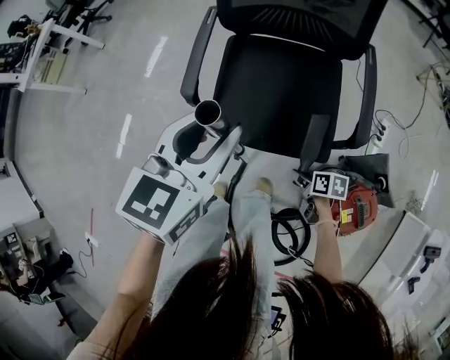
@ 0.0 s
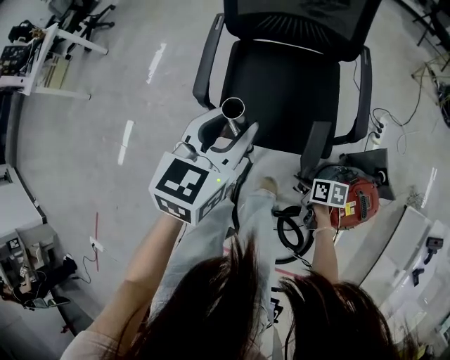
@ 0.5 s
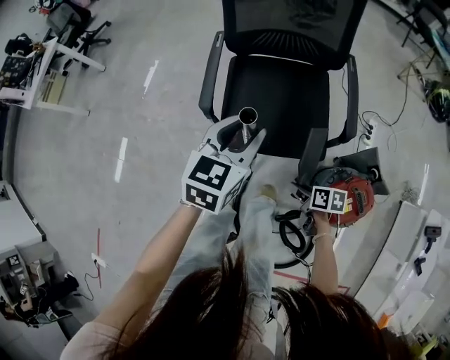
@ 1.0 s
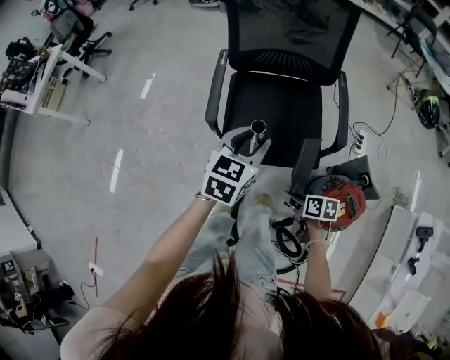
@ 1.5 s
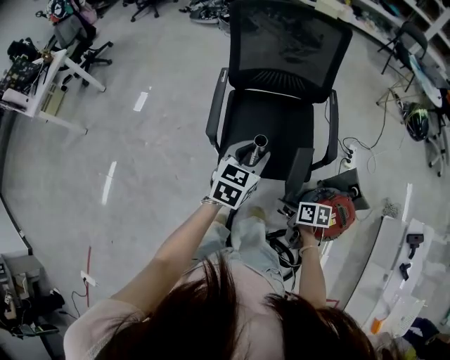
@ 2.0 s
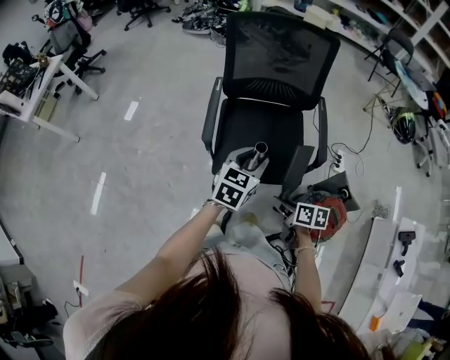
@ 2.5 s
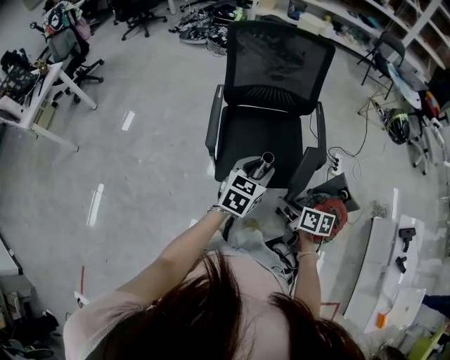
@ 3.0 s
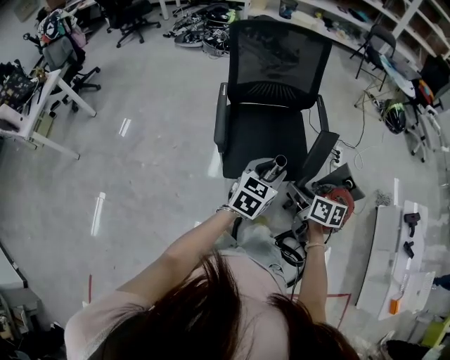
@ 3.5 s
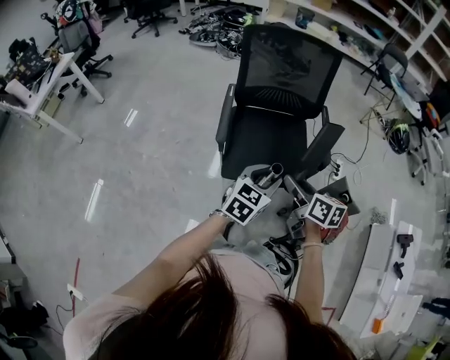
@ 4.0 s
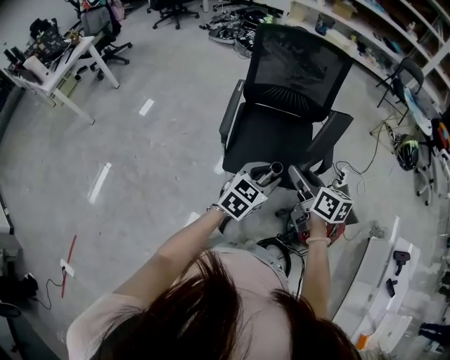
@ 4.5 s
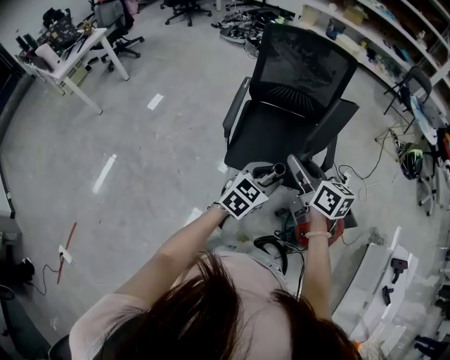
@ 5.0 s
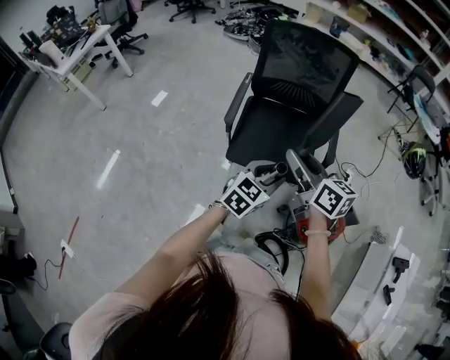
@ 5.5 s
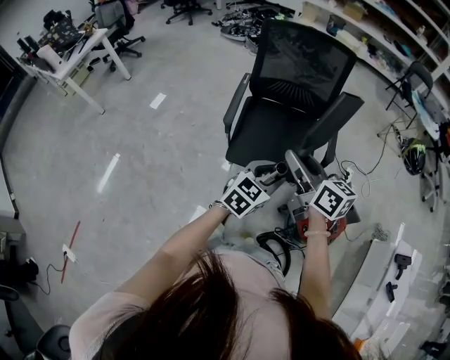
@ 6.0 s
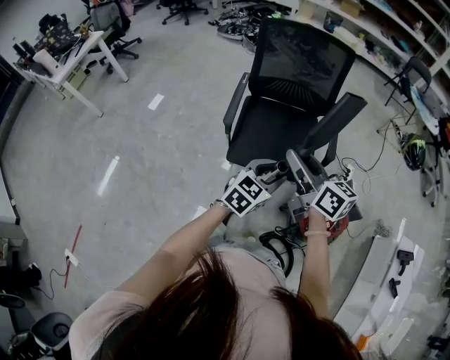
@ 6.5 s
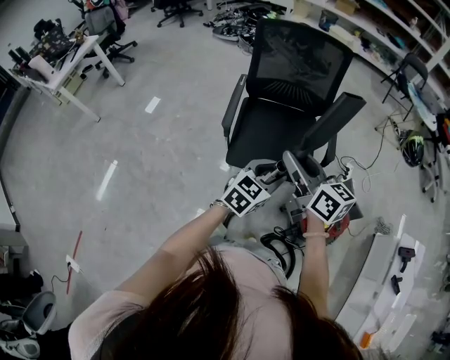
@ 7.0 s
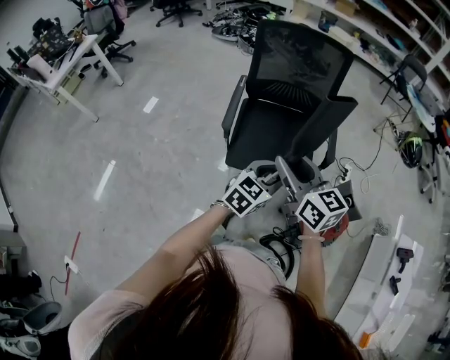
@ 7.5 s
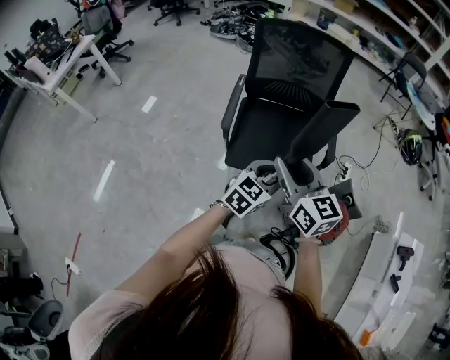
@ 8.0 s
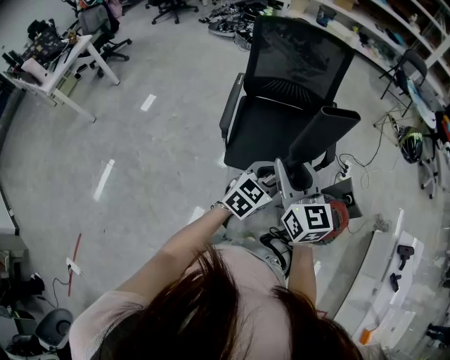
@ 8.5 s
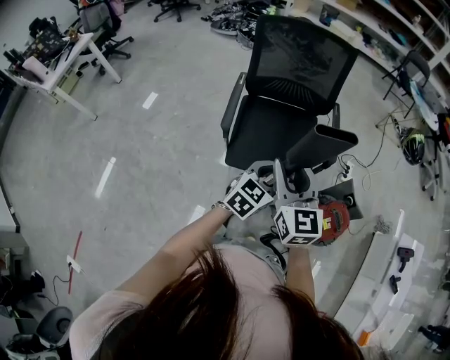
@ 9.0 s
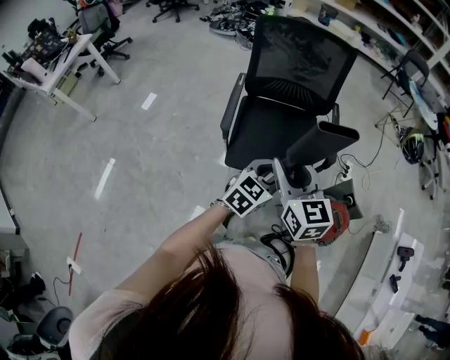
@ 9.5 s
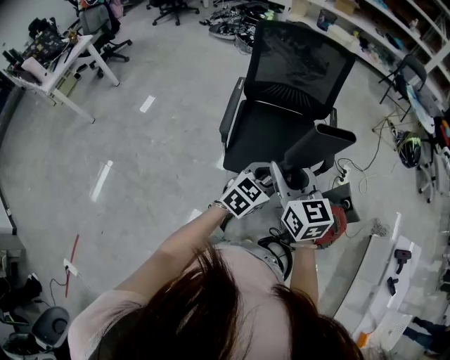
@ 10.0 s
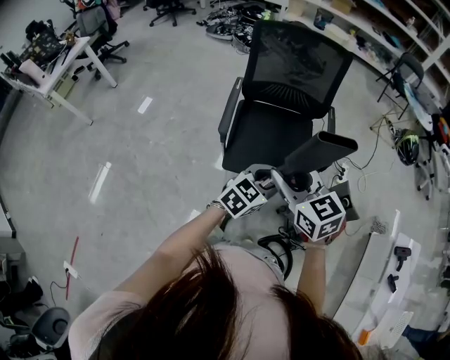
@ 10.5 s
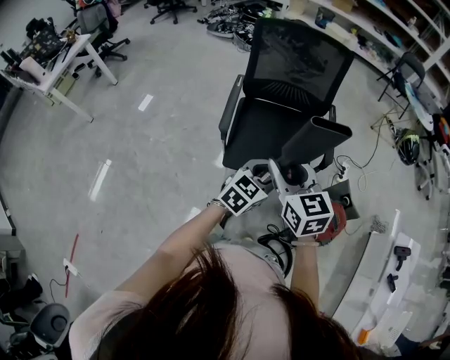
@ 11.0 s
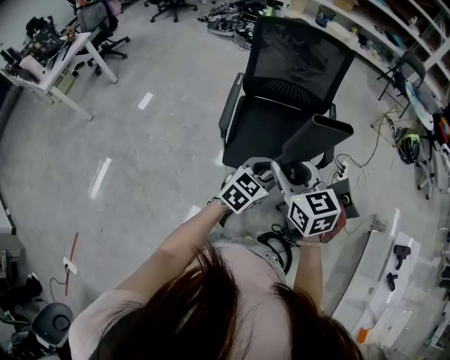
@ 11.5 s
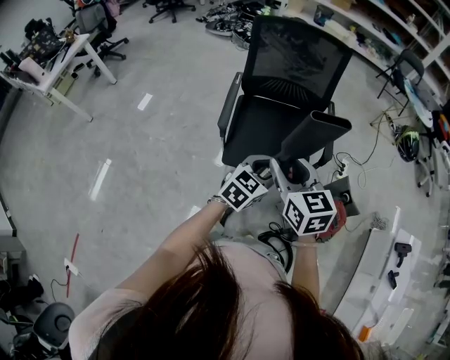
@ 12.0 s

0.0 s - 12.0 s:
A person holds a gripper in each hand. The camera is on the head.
0.0 s - 2.0 s: The right gripper moves upward and to the left, about 25 cm.
2.0 s - 4.0 s: The right gripper moves upward, approximately 20 cm, and turns by approximately 30 degrees. The left gripper shifts roughly 10 cm backward.
4.0 s - 6.0 s: The left gripper shifts approximately 10 cm to the right and backward; the right gripper moves upward, approximately 10 cm, and swivels roughly 20 degrees.
6.0 s - 8.0 s: The right gripper swivels some 20 degrees.
8.0 s - 10.0 s: The grippers make only small movements.
10.0 s - 12.0 s: The grippers move only a little.

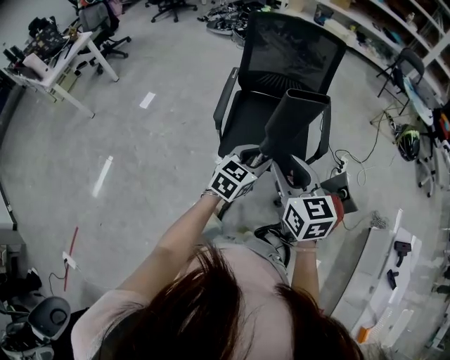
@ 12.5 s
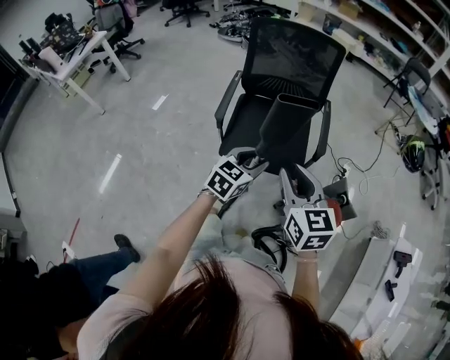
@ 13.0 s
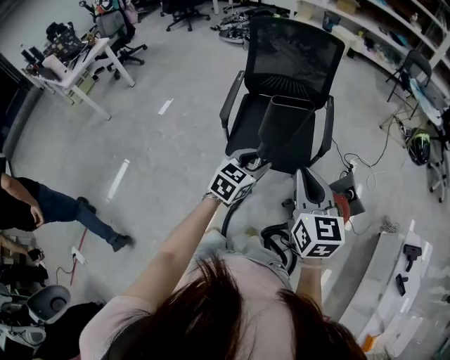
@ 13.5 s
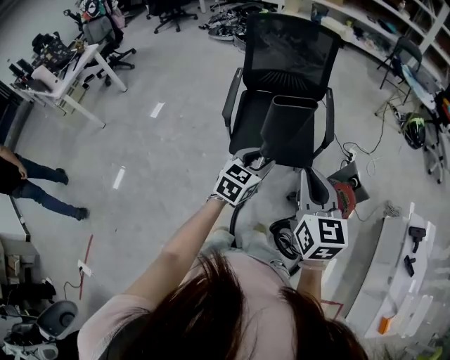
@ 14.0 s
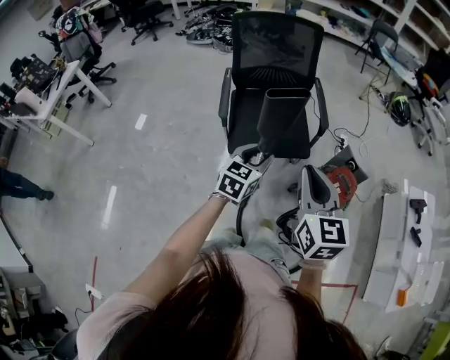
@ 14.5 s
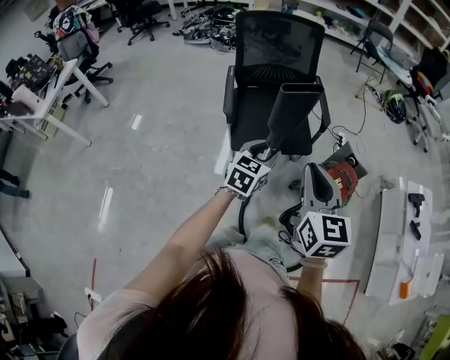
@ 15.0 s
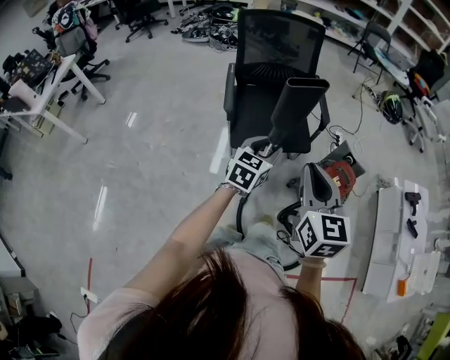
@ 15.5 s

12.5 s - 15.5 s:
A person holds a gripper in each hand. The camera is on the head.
12.5 s - 14.0 s: The right gripper shifts about 10 cm backward and to the right, and closes up. Meanwhile the left gripper shifts roughly 10 cm backward.
14.0 s - 15.5 s: The right gripper travels backward and to the left by about 15 cm. The left gripper travels to the left and backward by about 10 cm.

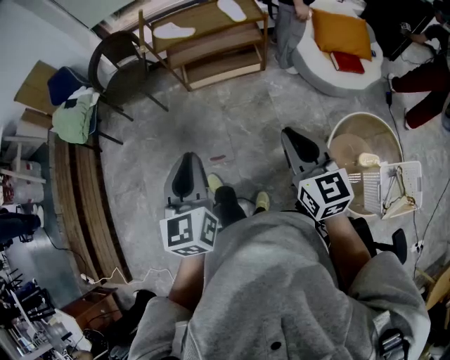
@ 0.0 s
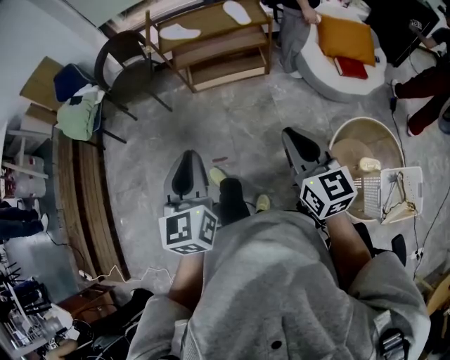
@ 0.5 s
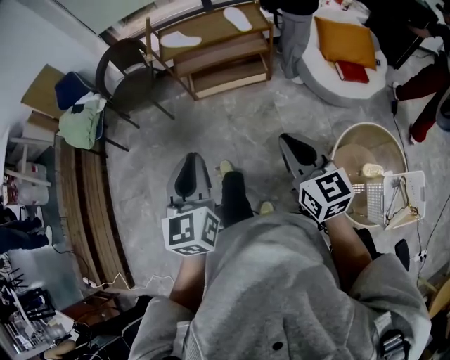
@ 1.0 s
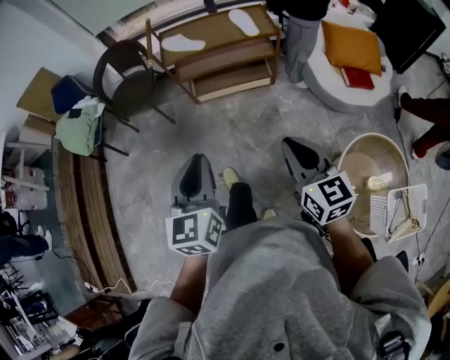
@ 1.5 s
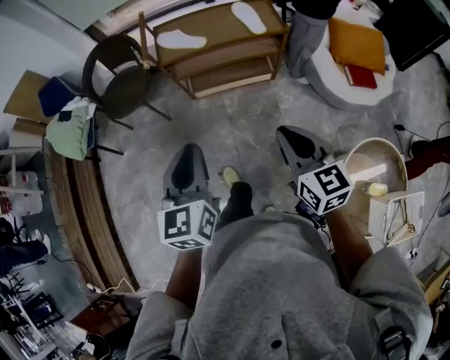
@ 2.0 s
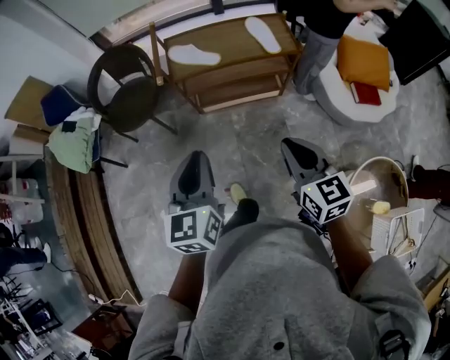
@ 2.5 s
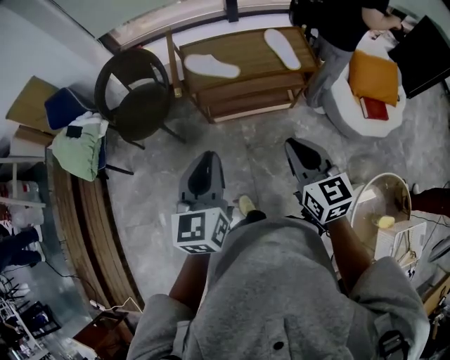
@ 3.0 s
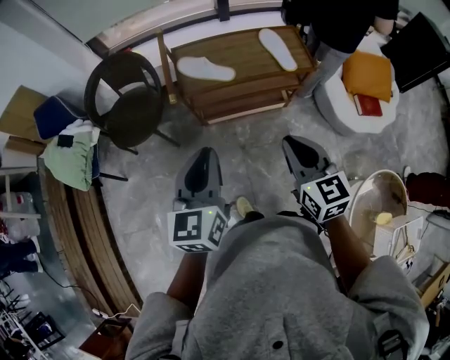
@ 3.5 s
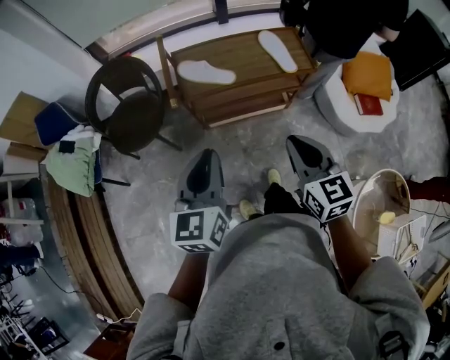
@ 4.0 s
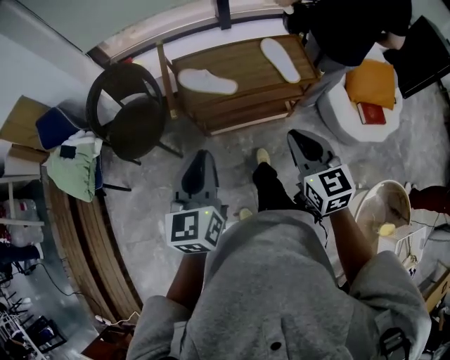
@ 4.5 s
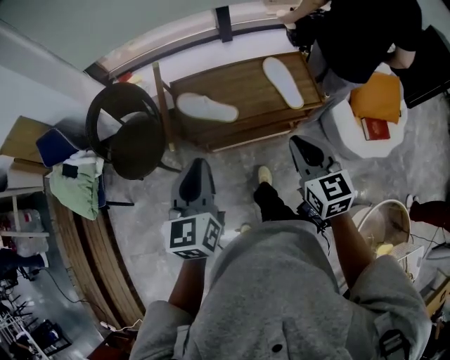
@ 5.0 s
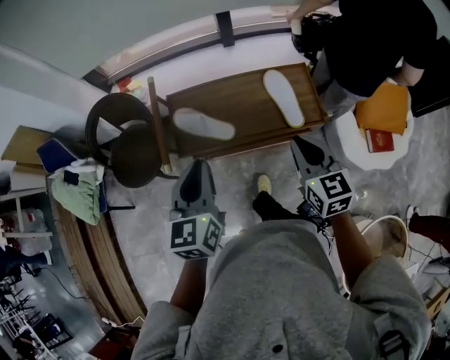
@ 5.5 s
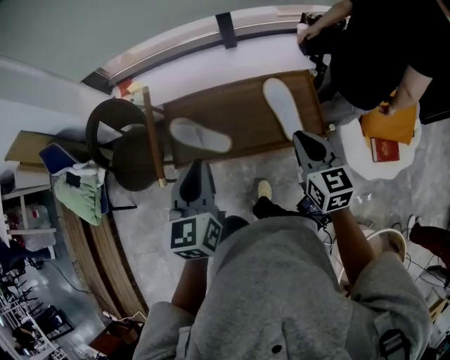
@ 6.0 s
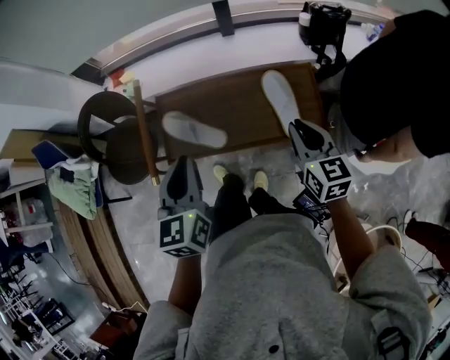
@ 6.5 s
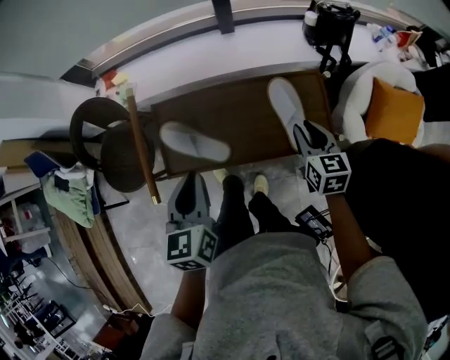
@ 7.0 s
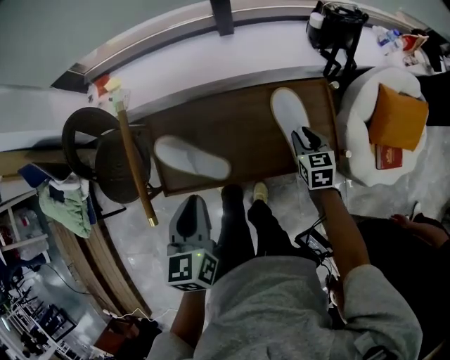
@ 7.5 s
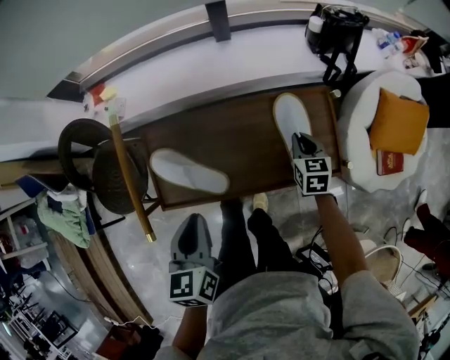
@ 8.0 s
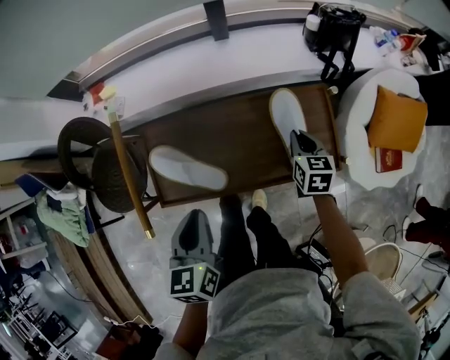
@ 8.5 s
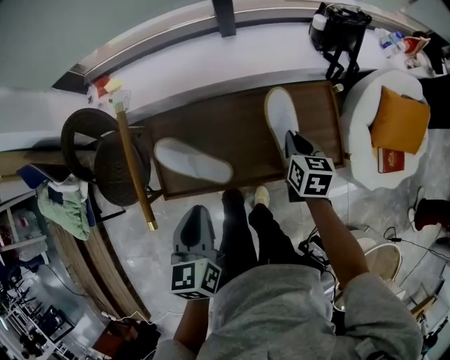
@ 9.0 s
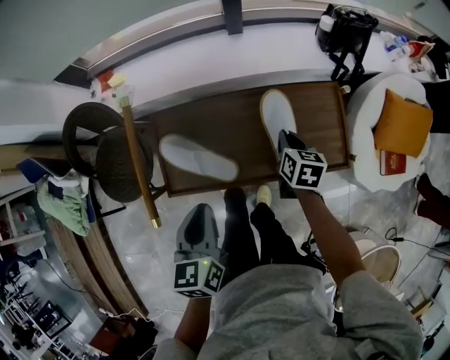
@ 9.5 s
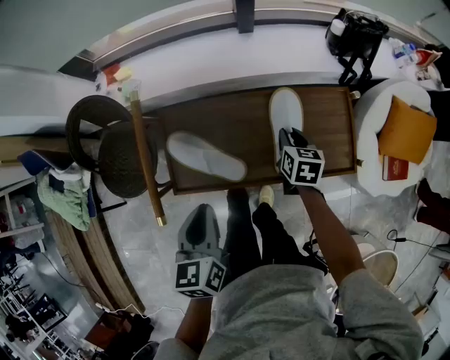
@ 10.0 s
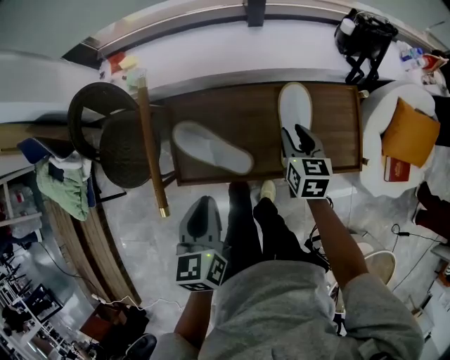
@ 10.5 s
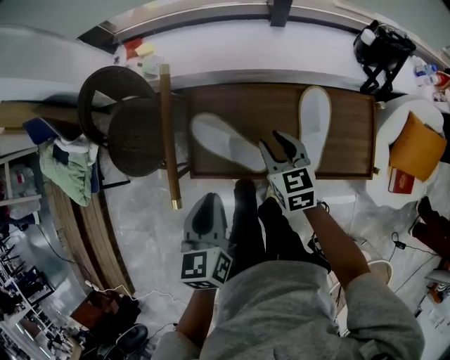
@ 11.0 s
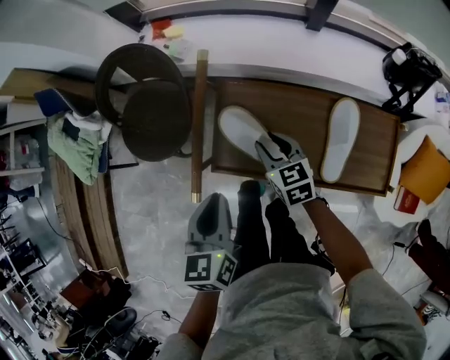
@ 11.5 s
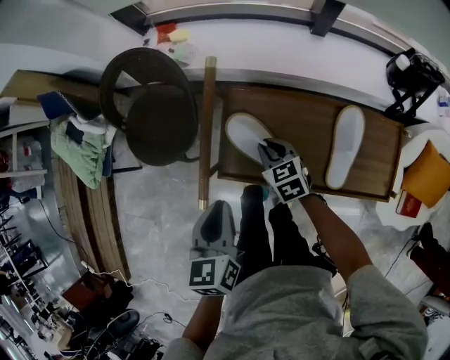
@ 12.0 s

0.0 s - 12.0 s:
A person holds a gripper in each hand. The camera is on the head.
0.0 s - 2.0 s: The grippers both shift forward by roughly 20 cm.
2.0 s - 4.0 s: The grippers both shift forward and to the left by roughly 20 cm.
4.0 s - 6.0 s: The two grippers go roughly 35 cm forward and to the right.
6.0 s - 8.0 s: The right gripper shifts about 30 cm downward and forward, and rotates some 20 degrees. The left gripper heads downward and forward, covering about 15 cm.
8.0 s - 10.0 s: The right gripper moves to the left, about 10 cm.
10.0 s - 12.0 s: The right gripper shifts by approximately 25 cm, and changes its angle by some 50 degrees. Meanwhile the left gripper changes place by about 10 cm.
